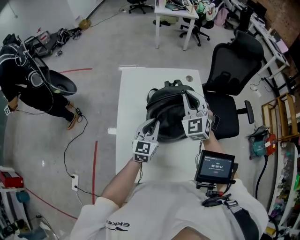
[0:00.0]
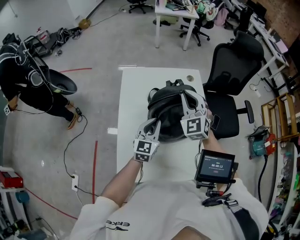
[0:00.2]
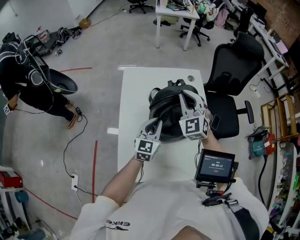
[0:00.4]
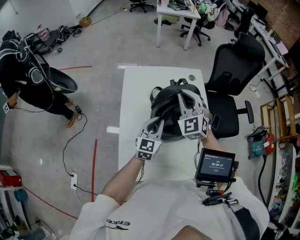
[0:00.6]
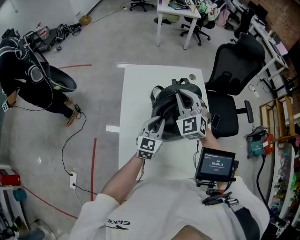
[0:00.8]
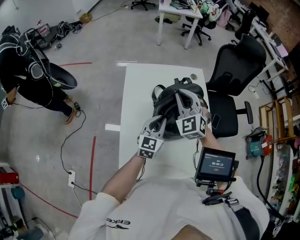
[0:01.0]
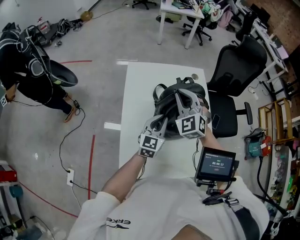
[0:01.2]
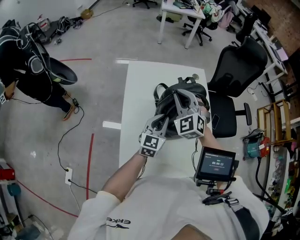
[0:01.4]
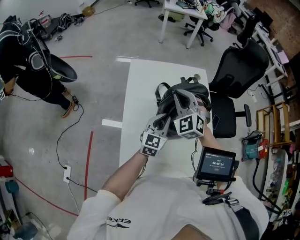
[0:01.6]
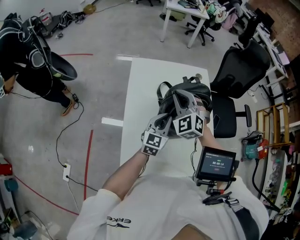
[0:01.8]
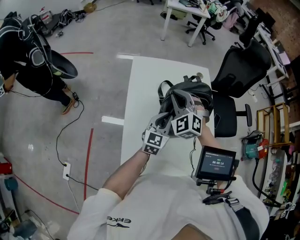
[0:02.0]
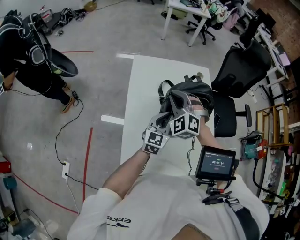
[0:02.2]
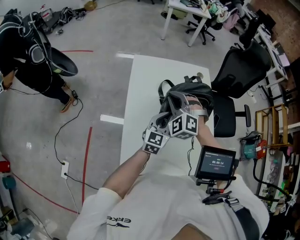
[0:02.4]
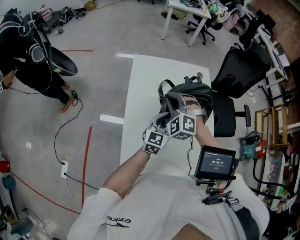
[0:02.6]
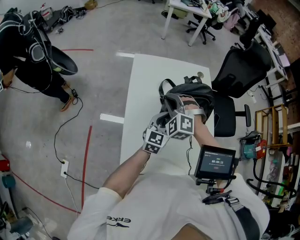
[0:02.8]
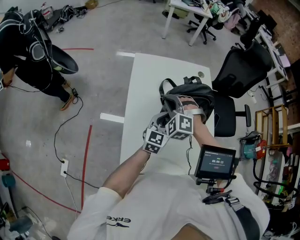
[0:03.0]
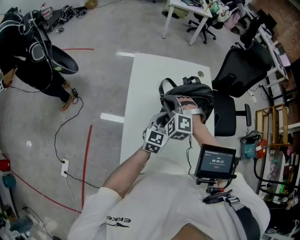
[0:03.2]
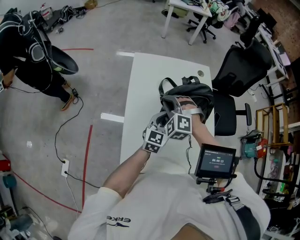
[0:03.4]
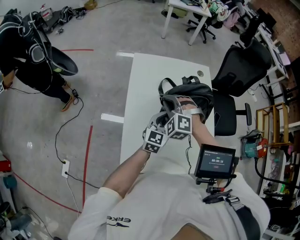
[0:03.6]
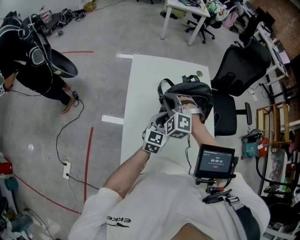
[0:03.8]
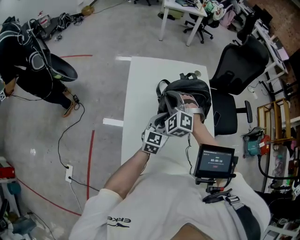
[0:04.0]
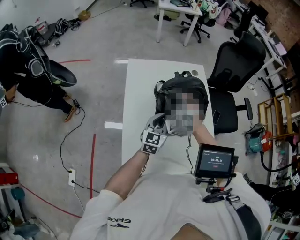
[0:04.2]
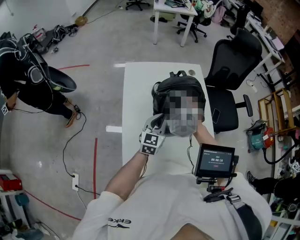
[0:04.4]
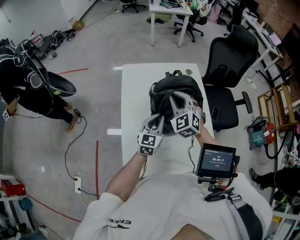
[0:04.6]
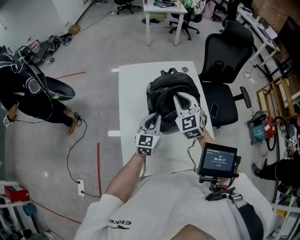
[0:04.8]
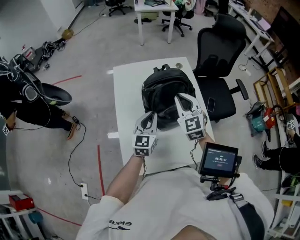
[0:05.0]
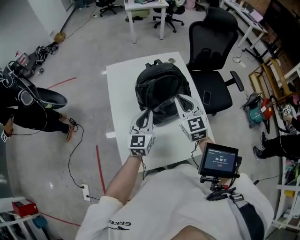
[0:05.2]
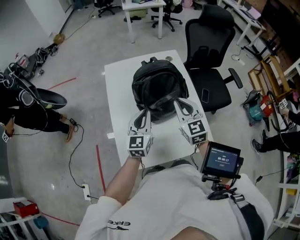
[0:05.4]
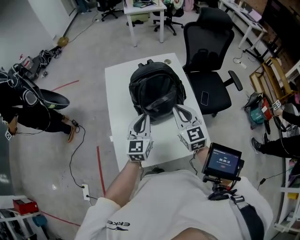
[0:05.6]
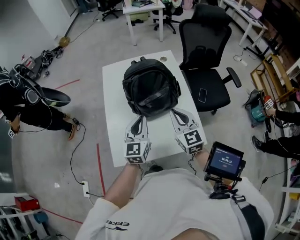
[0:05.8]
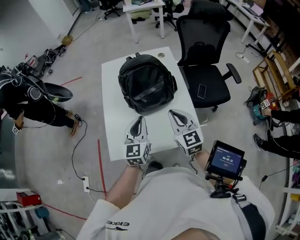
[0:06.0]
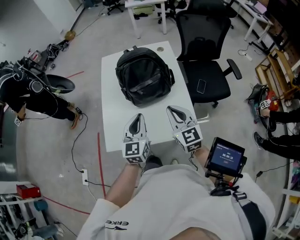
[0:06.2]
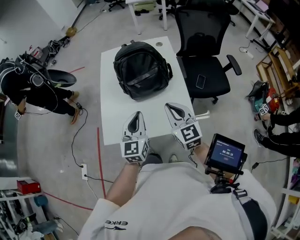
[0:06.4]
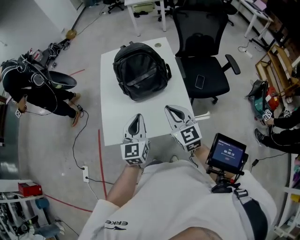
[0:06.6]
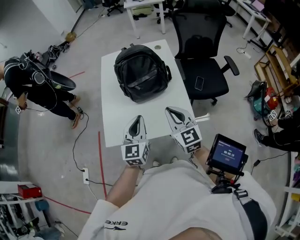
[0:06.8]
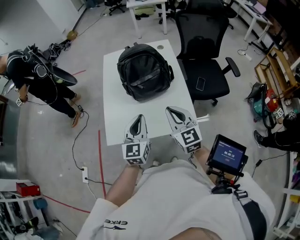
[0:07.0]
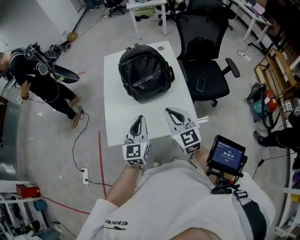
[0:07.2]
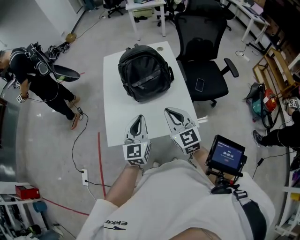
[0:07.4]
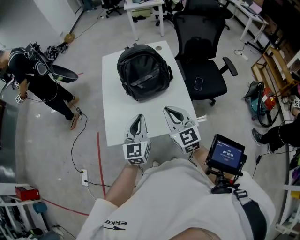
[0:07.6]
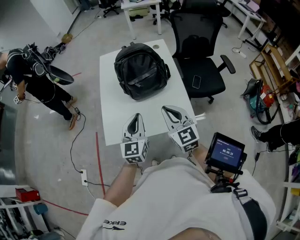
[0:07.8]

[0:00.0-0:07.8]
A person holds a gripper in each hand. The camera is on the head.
0:00.0 to 0:01.6: The right gripper goes roughly 10 cm to the left.
0:01.6 to 0:03.2: The right gripper goes about 10 cm downward, and swivels roughly 30 degrees.
0:03.2 to 0:04.6: The right gripper shifts roughly 10 cm to the right and upward, and turns by approximately 40 degrees.
0:04.6 to 0:06.2: The grippers both shift backward and to the right by roughly 25 cm. The right gripper swivels some 40 degrees.
0:06.2 to 0:07.8: Both grippers travel together backward, about 5 cm.

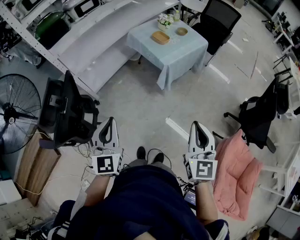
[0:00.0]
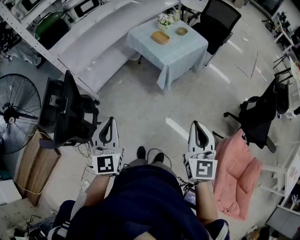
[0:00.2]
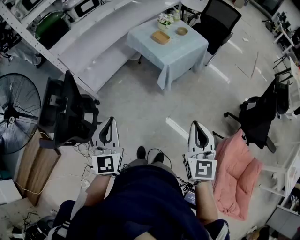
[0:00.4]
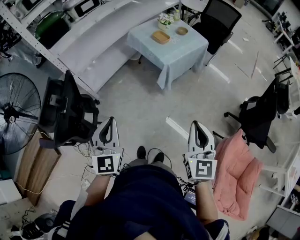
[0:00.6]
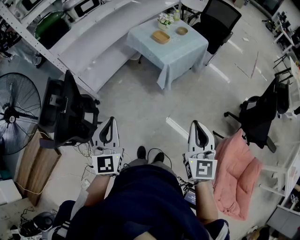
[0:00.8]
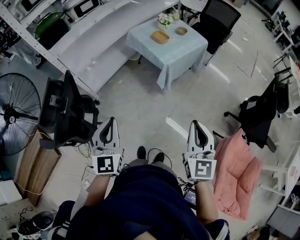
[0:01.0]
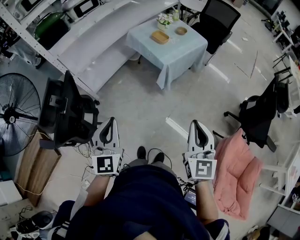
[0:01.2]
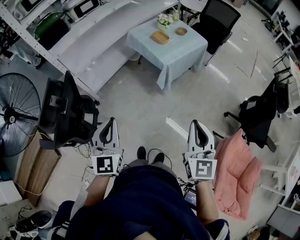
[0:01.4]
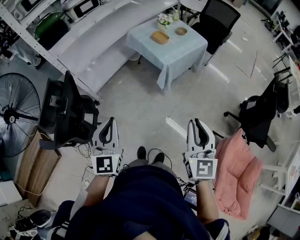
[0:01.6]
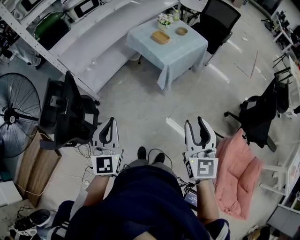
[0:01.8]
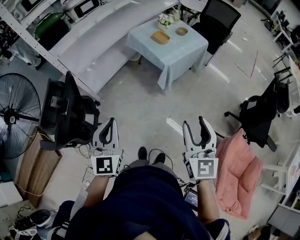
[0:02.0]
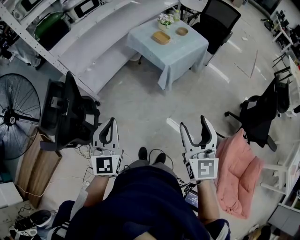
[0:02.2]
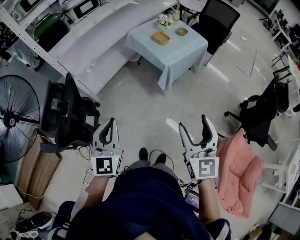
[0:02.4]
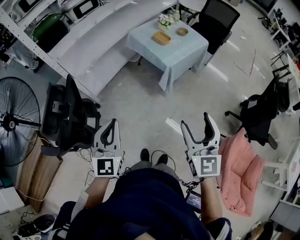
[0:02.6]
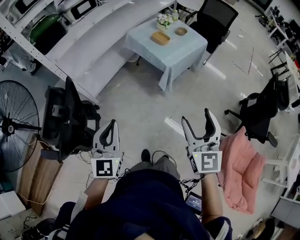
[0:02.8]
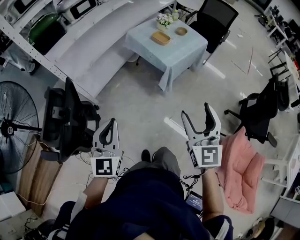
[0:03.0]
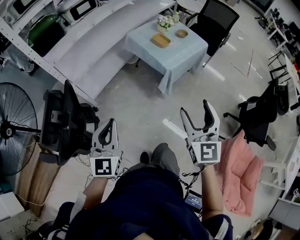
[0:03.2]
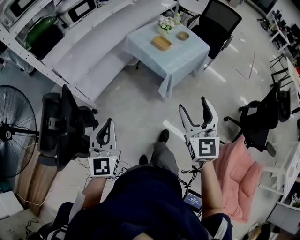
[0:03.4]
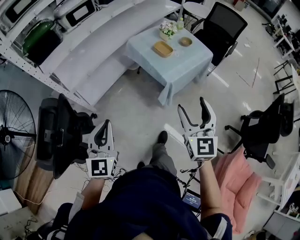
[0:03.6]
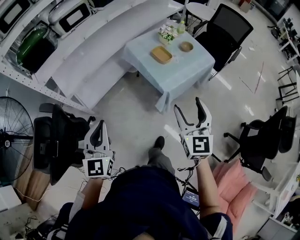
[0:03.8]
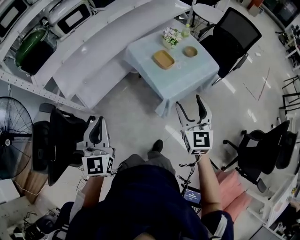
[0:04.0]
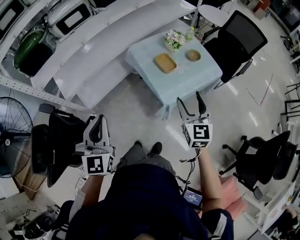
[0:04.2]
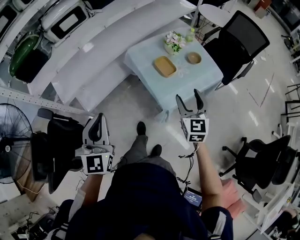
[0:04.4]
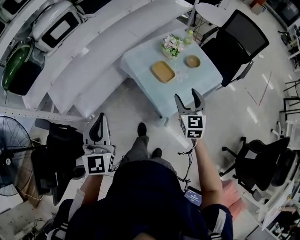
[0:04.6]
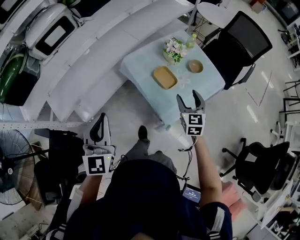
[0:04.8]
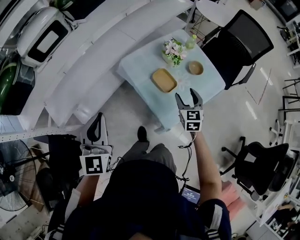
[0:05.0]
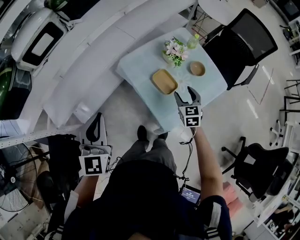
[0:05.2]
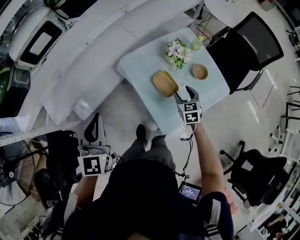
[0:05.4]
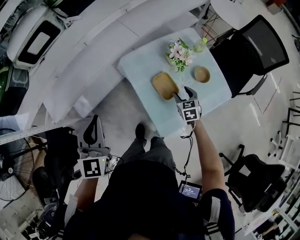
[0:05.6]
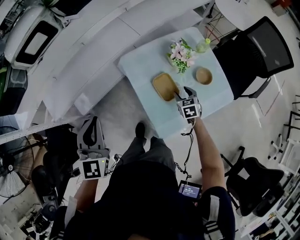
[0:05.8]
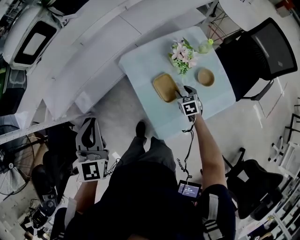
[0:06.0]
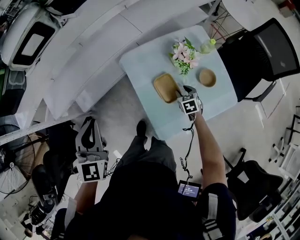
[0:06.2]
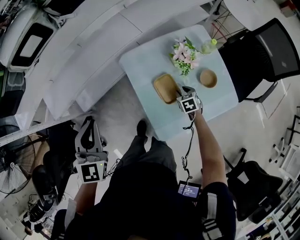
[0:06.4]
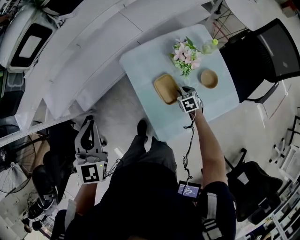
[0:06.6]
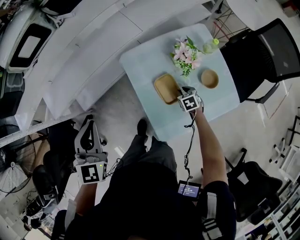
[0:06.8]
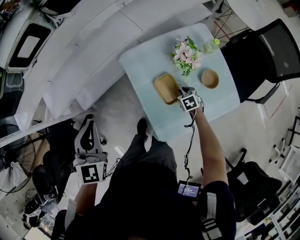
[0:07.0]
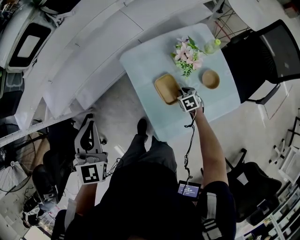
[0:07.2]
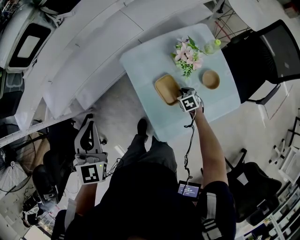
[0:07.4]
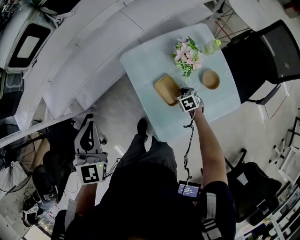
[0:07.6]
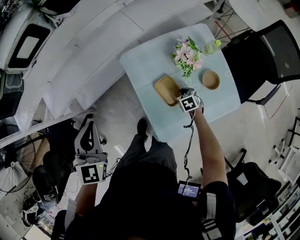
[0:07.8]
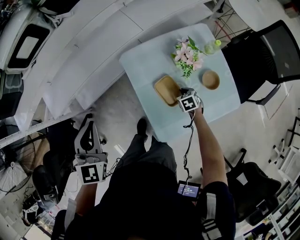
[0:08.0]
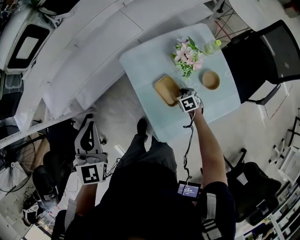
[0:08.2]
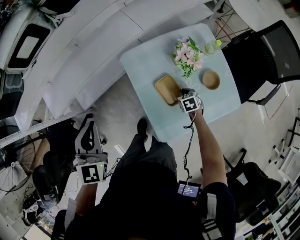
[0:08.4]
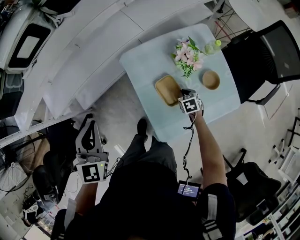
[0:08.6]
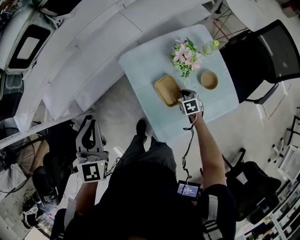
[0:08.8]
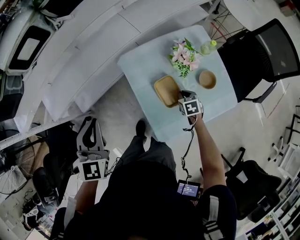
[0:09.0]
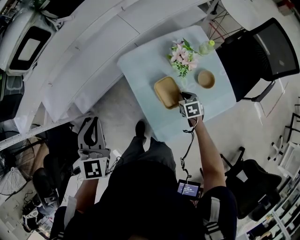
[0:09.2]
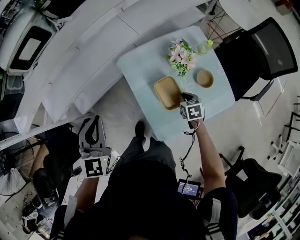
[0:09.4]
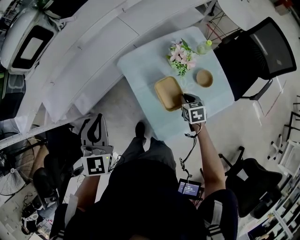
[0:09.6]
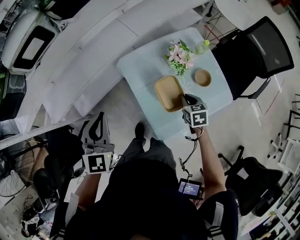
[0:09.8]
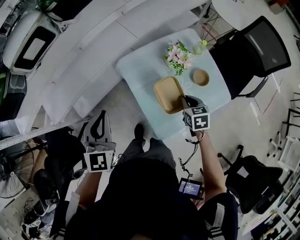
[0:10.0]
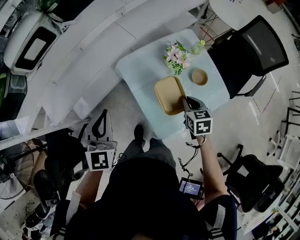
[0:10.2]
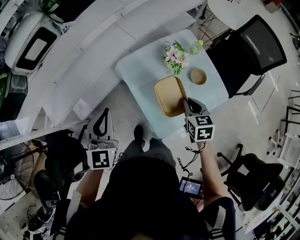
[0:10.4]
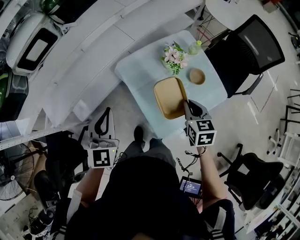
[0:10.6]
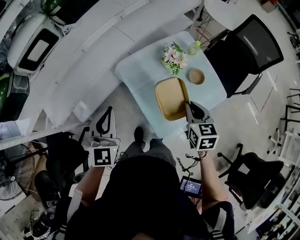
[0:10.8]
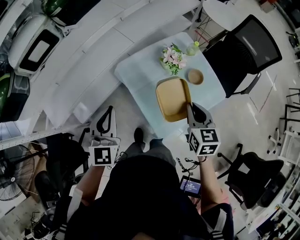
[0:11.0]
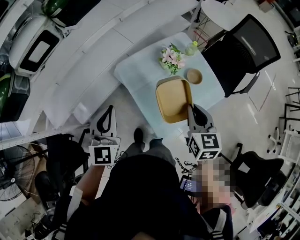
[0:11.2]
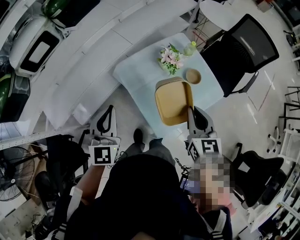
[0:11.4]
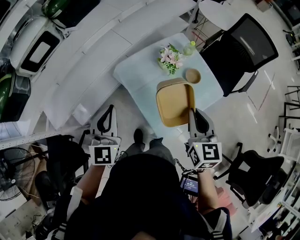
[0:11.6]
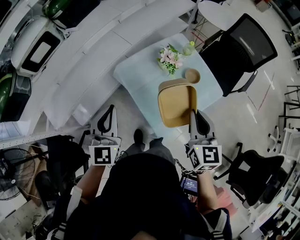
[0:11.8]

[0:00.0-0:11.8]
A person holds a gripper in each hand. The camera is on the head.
0:00.0 to 0:01.4: The two grippers keep their place.
0:01.4 to 0:03.0: The left gripper moves to the left, approximately 5 cm. Meanwhile the right gripper heads forward and to the left, covering some 10 cm, and opens up.
0:03.0 to 0:04.4: The two grippers go approximately 40 cm forward.
0:04.4 to 0:06.0: The right gripper goes approximately 40 cm downward and forward, and tilts its fingers about 40 degrees downward, while the left gripper heads forward, covering approximately 25 cm.
0:06.0 to 0:07.4: The right gripper moves downward, about 5 cm, and closes its fingers.
0:07.4 to 0:08.8: The grippers stay close to where they were, moving slightly.
0:08.8 to 0:10.4: The right gripper goes some 25 cm upward, and swivels approximately 20 degrees.
0:10.4 to 0:11.8: The right gripper heads upward and backward, covering about 20 cm, and swivels some 30 degrees.

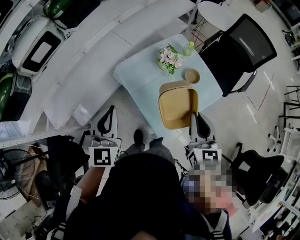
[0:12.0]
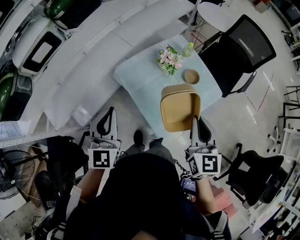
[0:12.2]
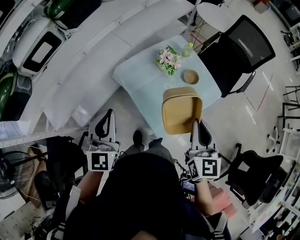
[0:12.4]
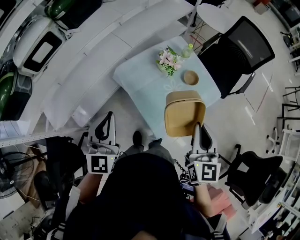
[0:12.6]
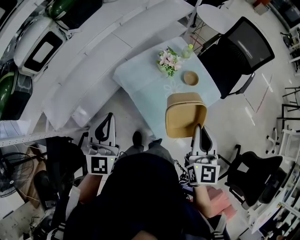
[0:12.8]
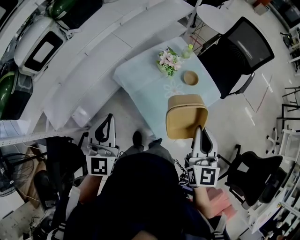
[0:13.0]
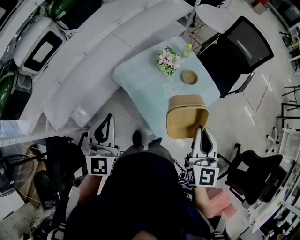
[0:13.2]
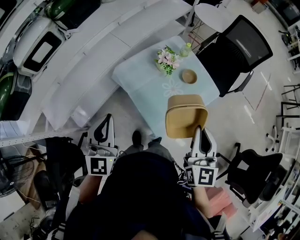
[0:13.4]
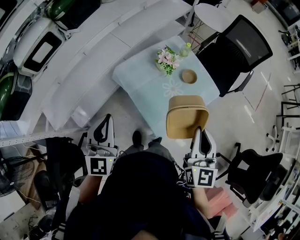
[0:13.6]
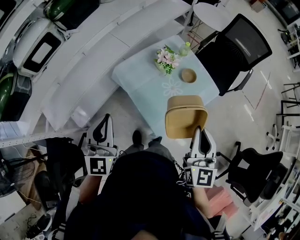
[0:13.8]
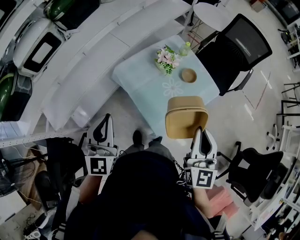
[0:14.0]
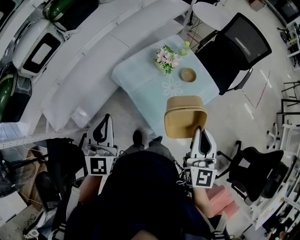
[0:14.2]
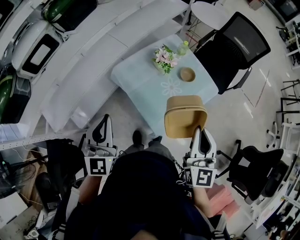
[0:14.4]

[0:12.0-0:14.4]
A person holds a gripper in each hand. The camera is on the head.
0:12.0 to 0:13.2: The right gripper moves backward, approximately 5 cm.
0:13.2 to 0:14.4: The grippers stay close to where they were, moving slightly.

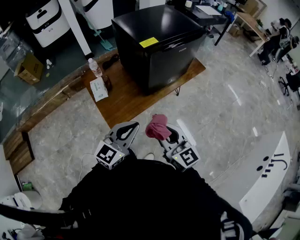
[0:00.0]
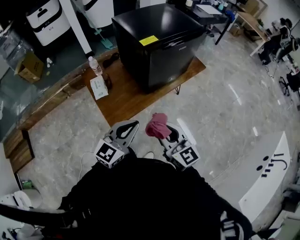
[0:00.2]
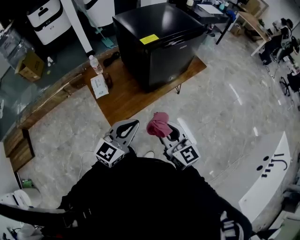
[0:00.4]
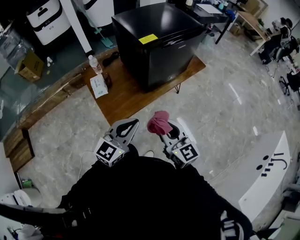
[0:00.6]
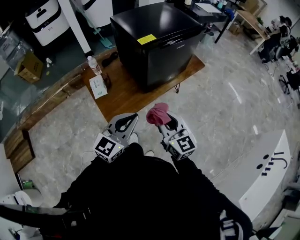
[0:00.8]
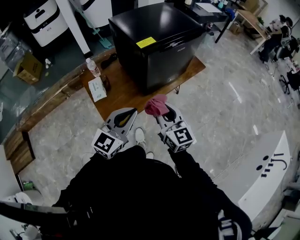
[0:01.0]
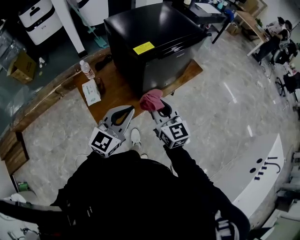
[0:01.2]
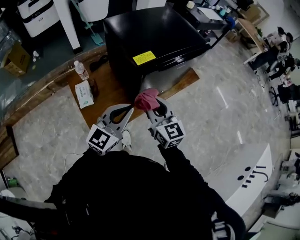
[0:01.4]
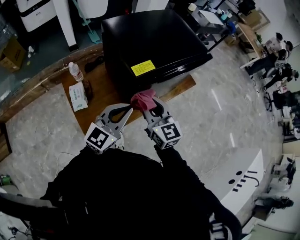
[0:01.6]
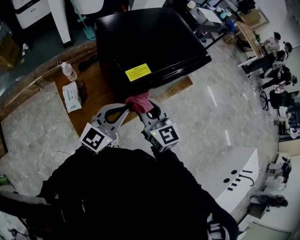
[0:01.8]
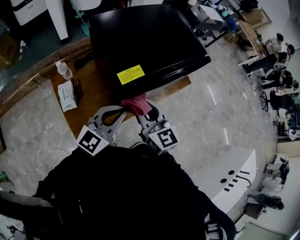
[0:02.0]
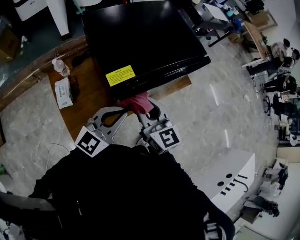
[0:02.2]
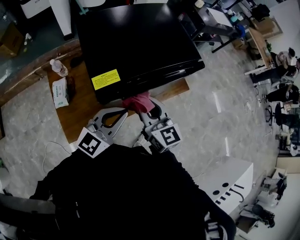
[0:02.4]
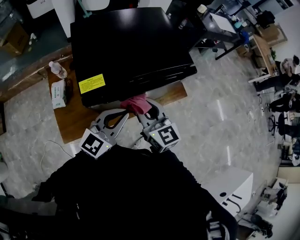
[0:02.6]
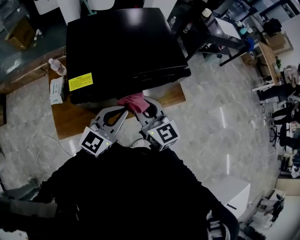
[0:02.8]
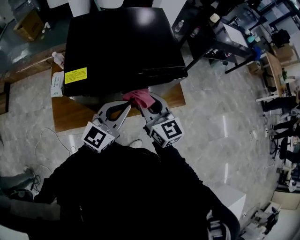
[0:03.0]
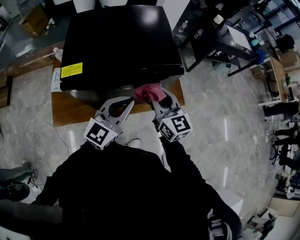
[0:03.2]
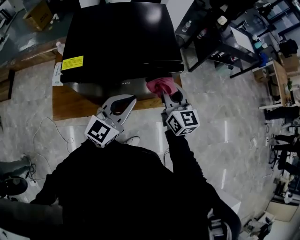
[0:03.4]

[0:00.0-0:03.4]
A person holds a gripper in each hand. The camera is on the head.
0:00.0 to 0:01.6: Both grippers move forward, roughly 25 cm.
0:01.6 to 0:03.4: The grippers both shift to the right and forward by approximately 35 cm. The left gripper turns by about 20 degrees.
